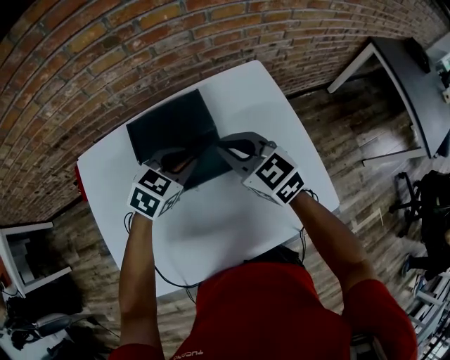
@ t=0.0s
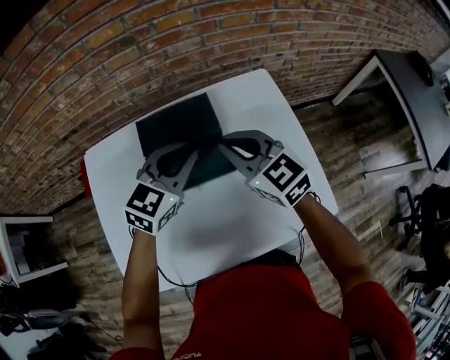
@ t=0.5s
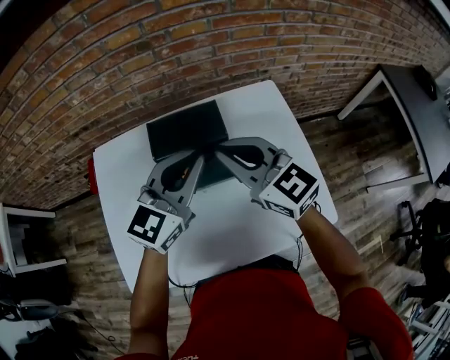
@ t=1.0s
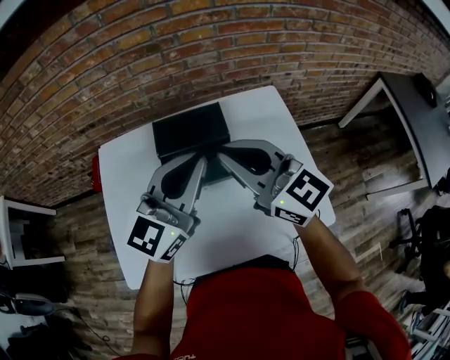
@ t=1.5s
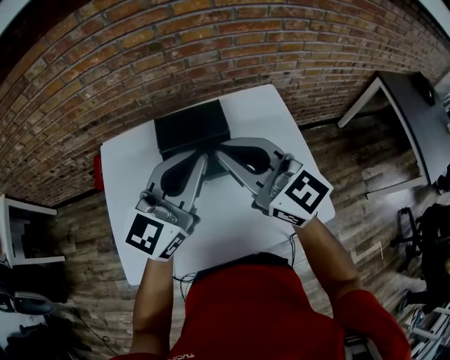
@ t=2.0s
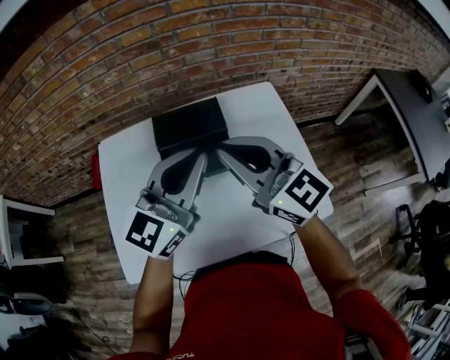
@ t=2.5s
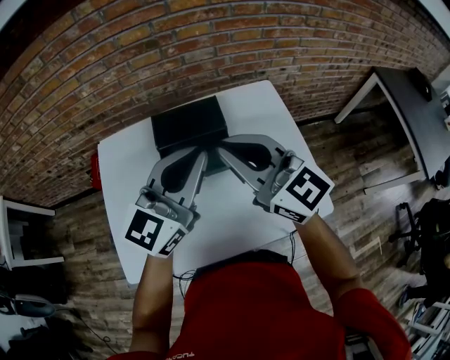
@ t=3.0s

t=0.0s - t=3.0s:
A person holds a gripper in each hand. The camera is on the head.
t=0.0s - t=1.5s: The grippers both shift upward and backward by about 20 cm. The right gripper swivels roughly 30 degrees, while the left gripper points its fingers roughly 50 degrees further upward, and closes its fingers.
t=1.5s - t=3.0s: The grippers move only a little.

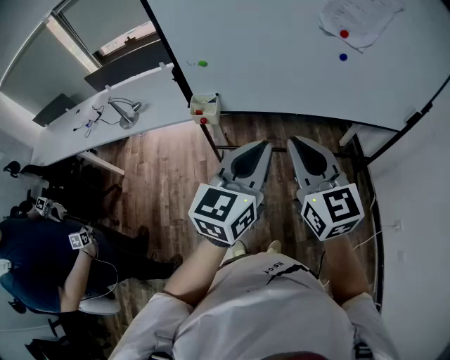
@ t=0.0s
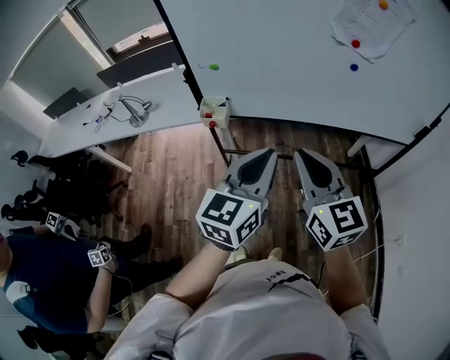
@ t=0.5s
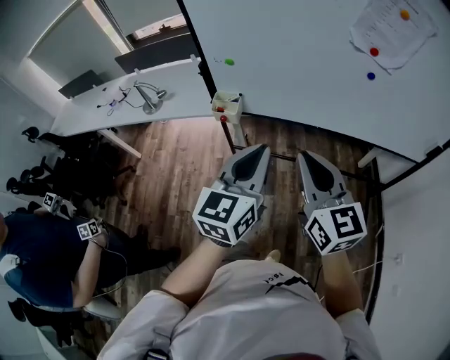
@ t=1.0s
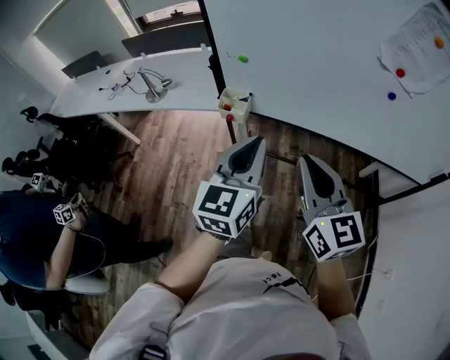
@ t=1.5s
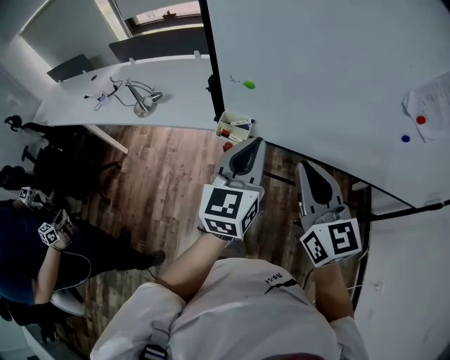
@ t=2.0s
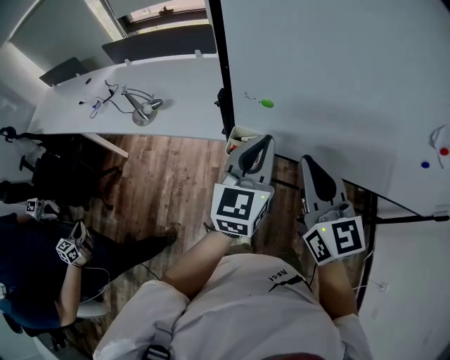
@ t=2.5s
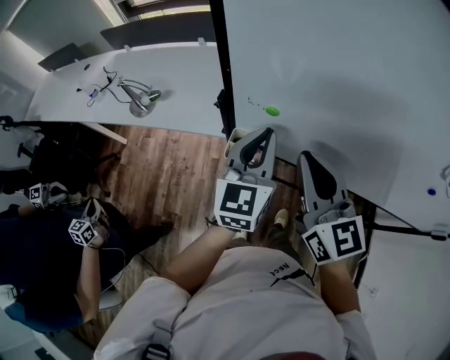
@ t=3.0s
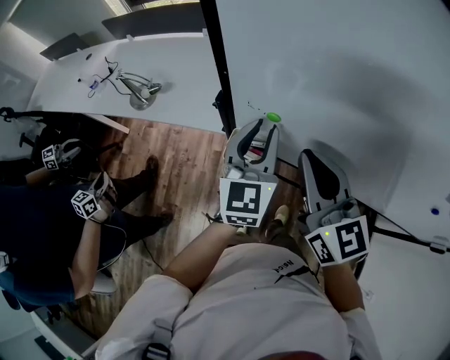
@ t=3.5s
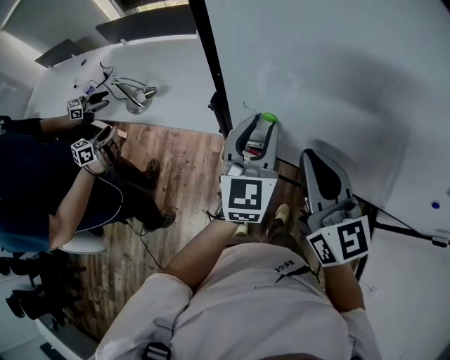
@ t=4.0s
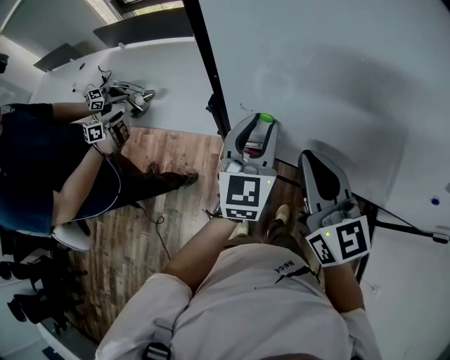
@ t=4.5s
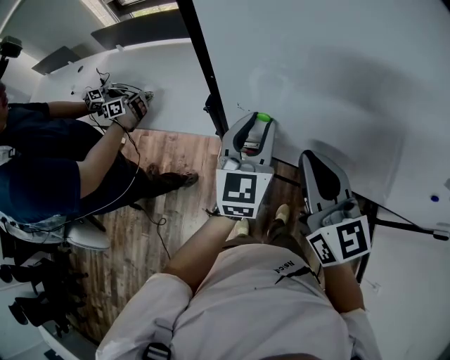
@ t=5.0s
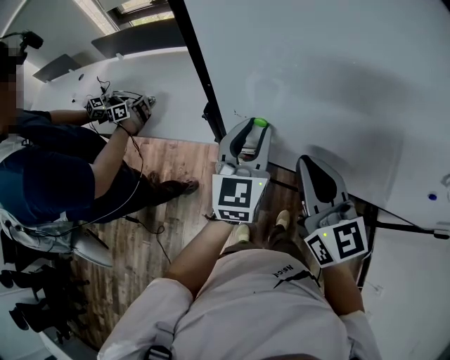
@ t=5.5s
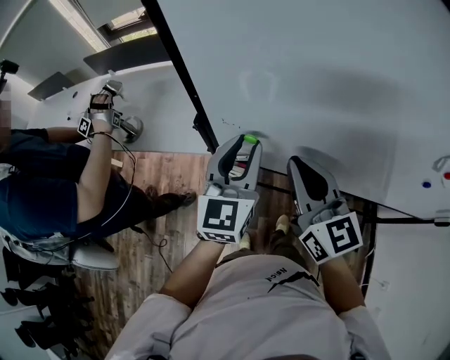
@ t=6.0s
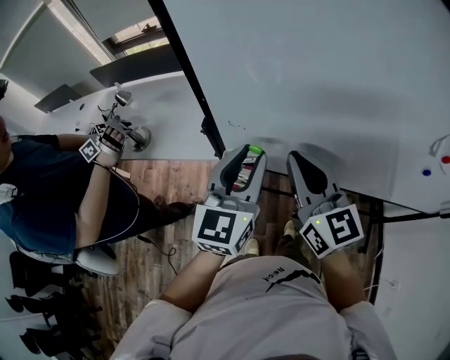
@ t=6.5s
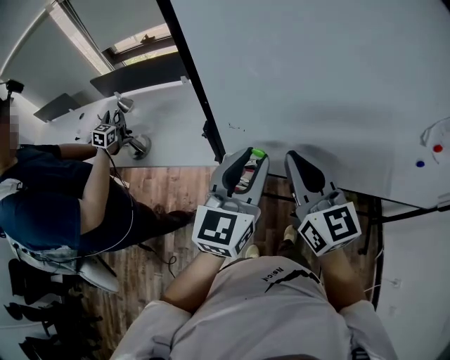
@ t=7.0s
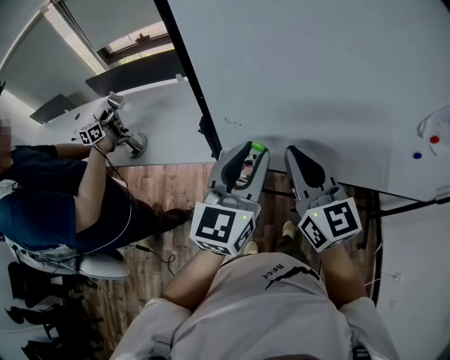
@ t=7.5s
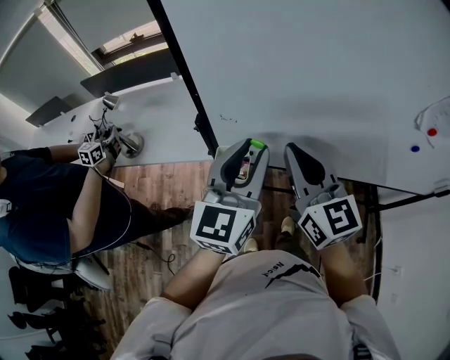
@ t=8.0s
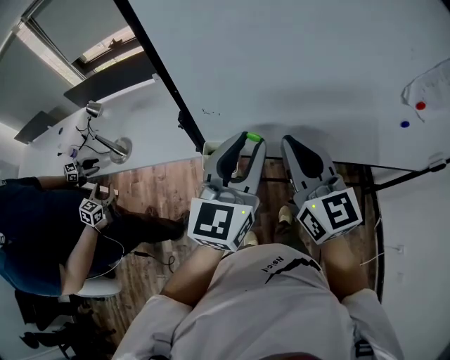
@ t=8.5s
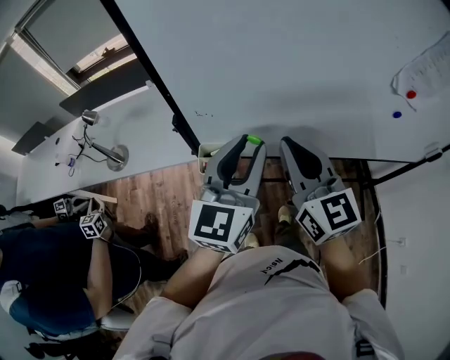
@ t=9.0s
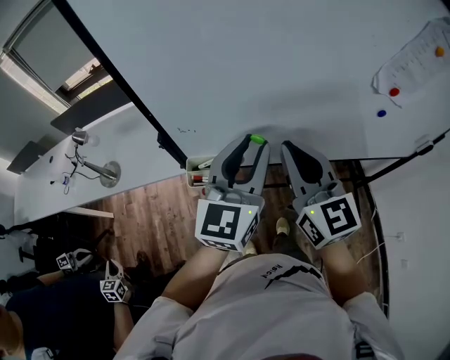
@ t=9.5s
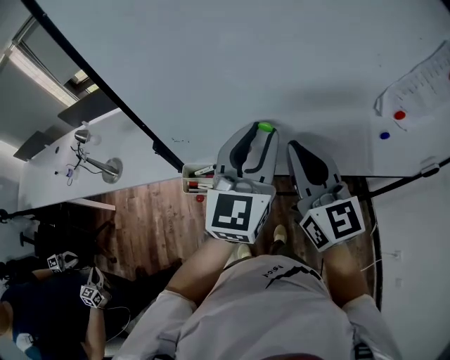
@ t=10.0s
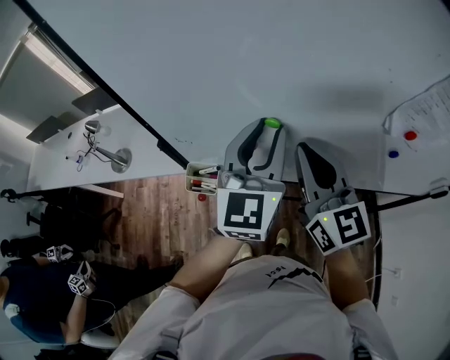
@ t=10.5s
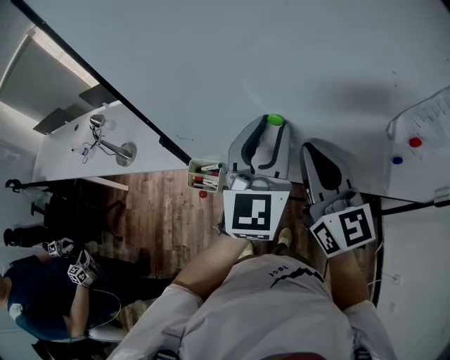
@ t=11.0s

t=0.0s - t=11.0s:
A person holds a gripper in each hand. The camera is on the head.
t=0.0s - t=2.0s: The left gripper heads forward and to the left, covering roughly 25 cm, and changes its angle by some 20 degrees, while the right gripper moves forward, about 15 cm.
t=2.0s - t=3.5s: Both grippers move forward, some 20 cm.
t=3.5s - t=5.5s: The grippers move only a little.
t=5.5s - t=7.5s: The left gripper shifts some 15 cm backward and upward.
t=7.5s - t=9.0s: The grippers move only a little.
t=9.0s - t=11.0s: The grippers both shift to the right and forward by some 15 cm.

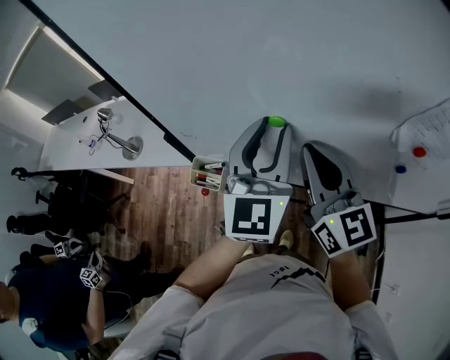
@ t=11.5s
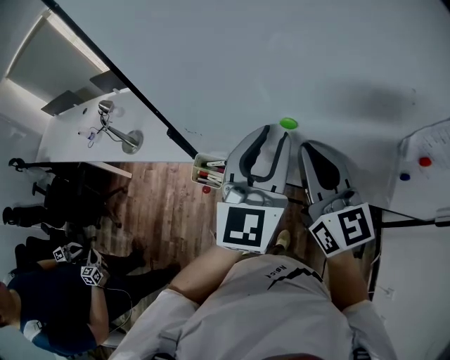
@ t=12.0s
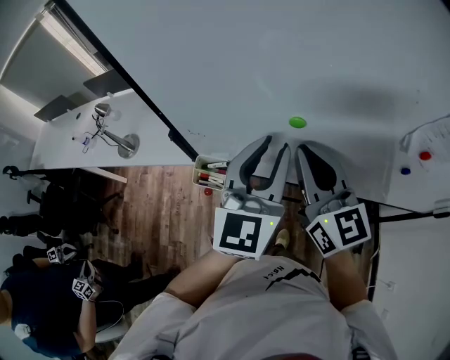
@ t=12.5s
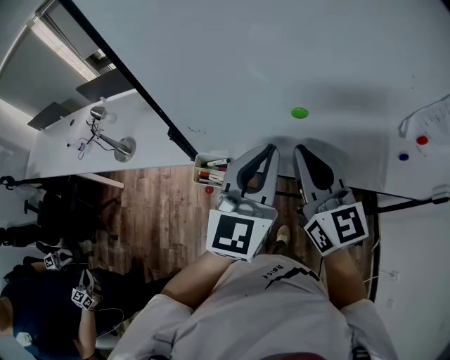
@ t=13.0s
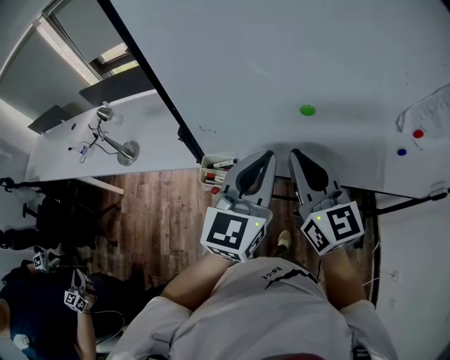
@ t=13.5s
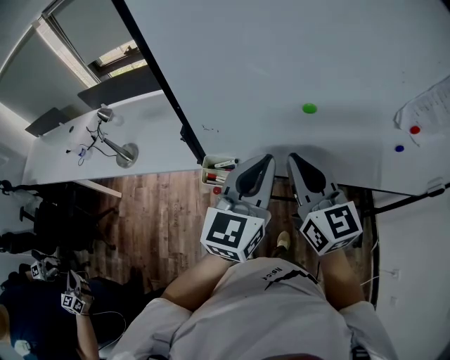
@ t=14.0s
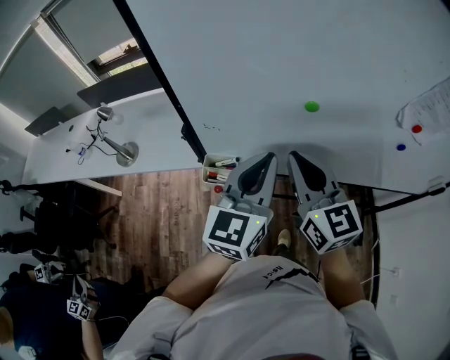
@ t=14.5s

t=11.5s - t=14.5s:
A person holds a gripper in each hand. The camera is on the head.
t=11.5s - t=13.0s: The two grippers go about 5 cm to the left. The left gripper closes up.
t=13.0s - t=14.5s: The right gripper moves roughly 5 cm, while the left gripper shifts by roughly 5 cm.

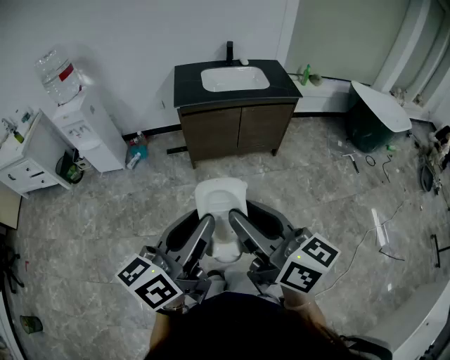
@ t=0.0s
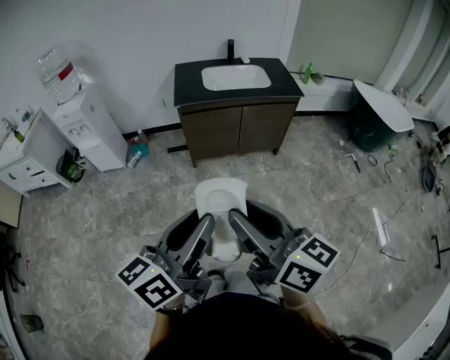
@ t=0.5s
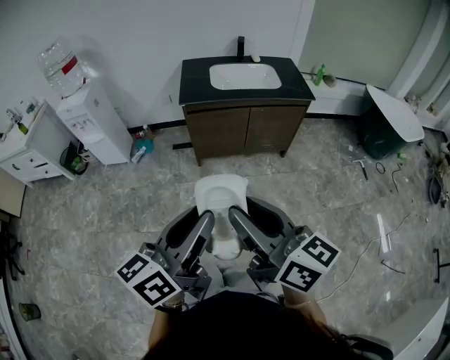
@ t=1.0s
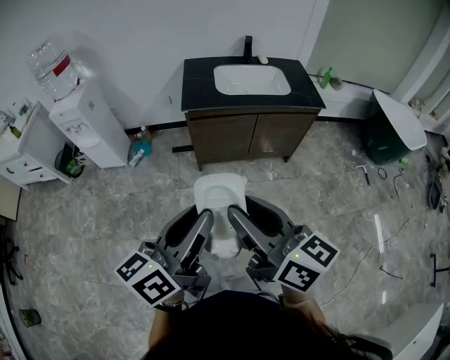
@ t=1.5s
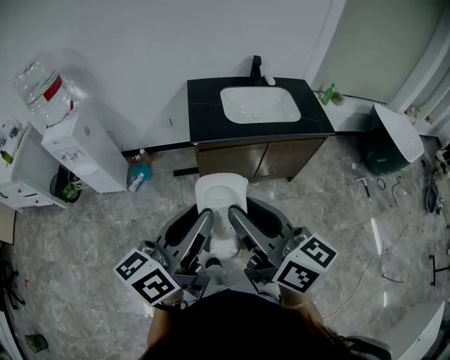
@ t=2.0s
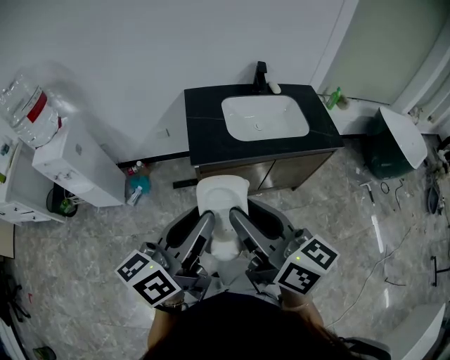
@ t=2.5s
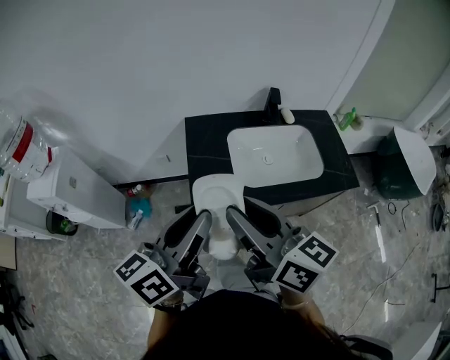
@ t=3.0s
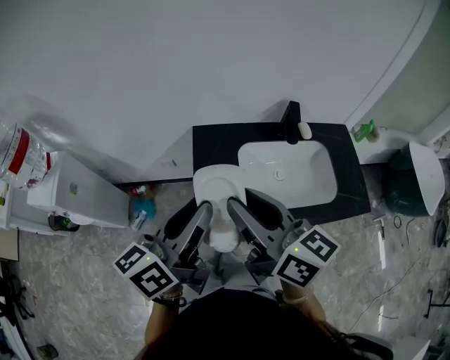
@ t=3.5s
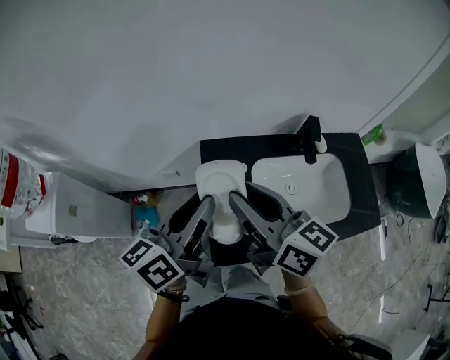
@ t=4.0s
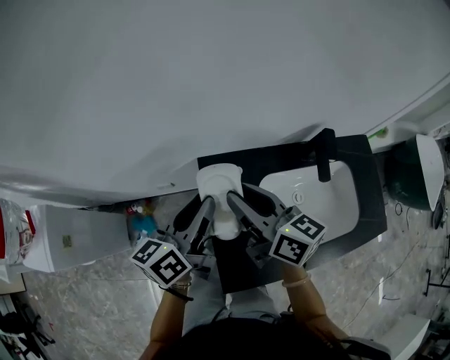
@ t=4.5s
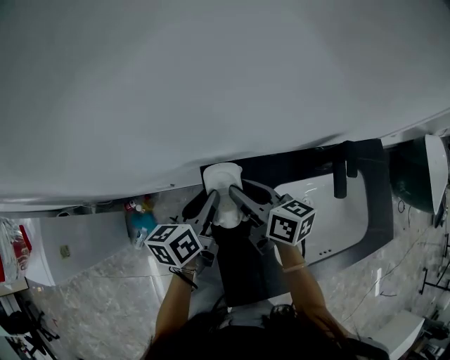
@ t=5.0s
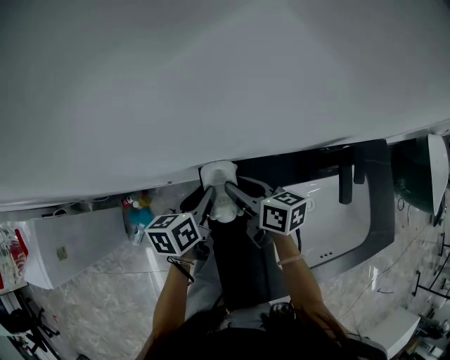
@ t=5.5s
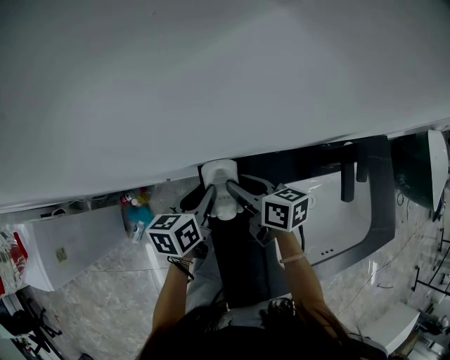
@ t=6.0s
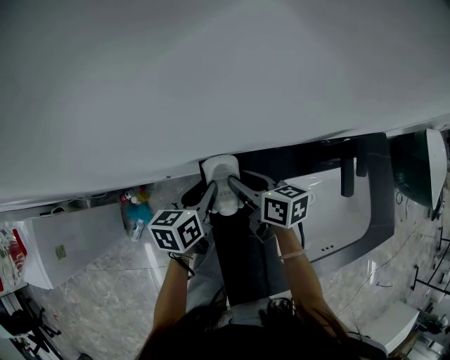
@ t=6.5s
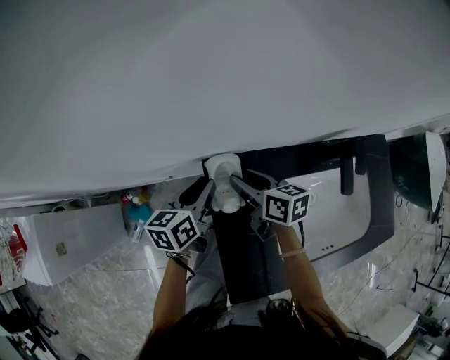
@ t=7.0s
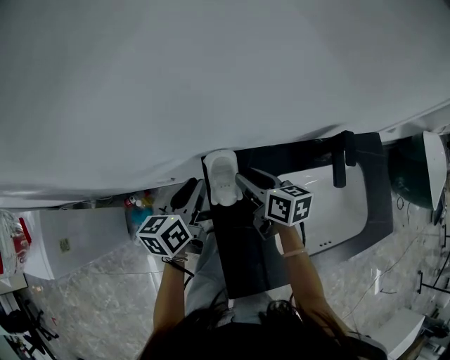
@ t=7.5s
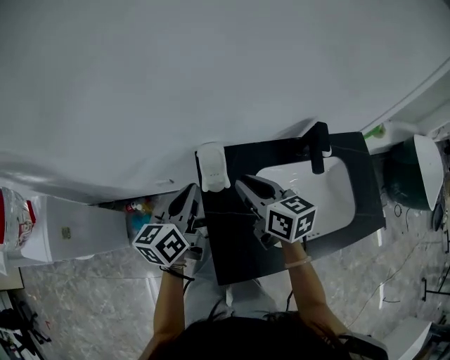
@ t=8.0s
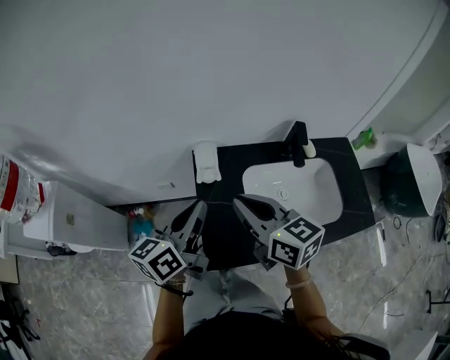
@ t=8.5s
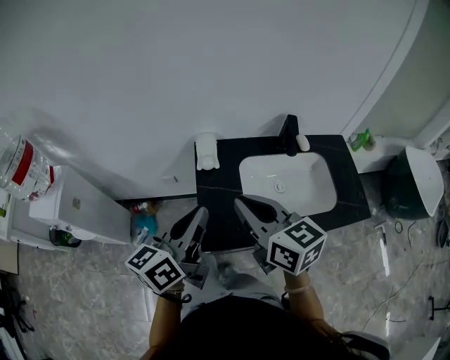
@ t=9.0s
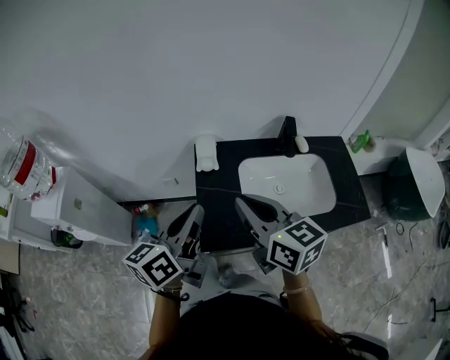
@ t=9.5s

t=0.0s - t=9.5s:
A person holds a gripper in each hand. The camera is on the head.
t=0.0s - t=2.0s: The grippers both shift forward by approximately 30 cm.
t=2.0s - t=4.0s: The pair of grippers is taken forward, roughly 60 cm.
t=4.0s - t=5.5s: The grippers both shift downward and forward by about 35 cm. The left gripper turns by roughly 30 degrees; the right gripper changes its angle by approximately 30 degrees.
t=5.5s - t=7.5s: The left gripper is displaced upward by some 5 cm.
t=7.5s - t=9.5s: Both grippers travel together backward and upward, roughly 40 cm. The right gripper turns by about 30 degrees, and closes up, while the left gripper closes.
